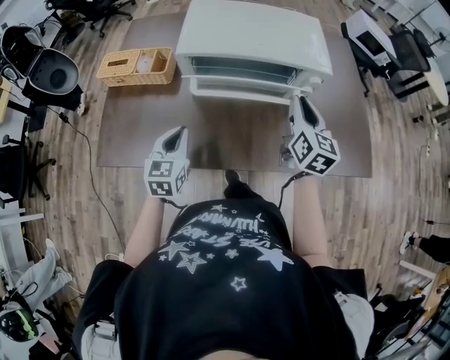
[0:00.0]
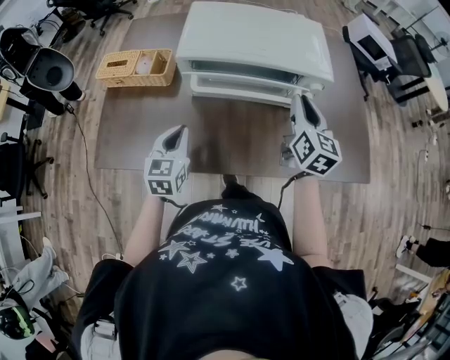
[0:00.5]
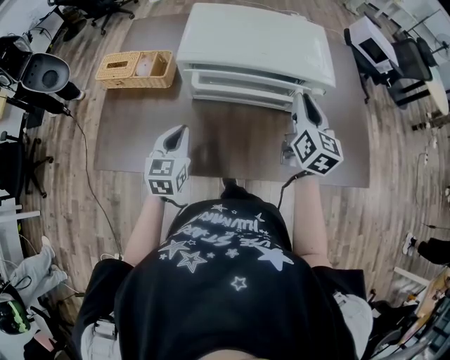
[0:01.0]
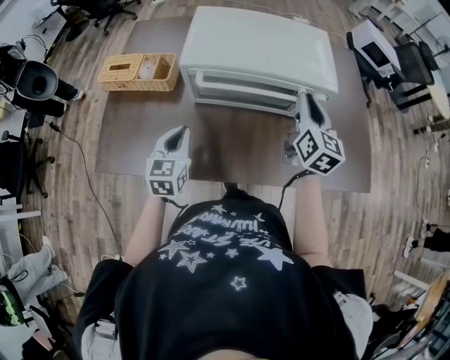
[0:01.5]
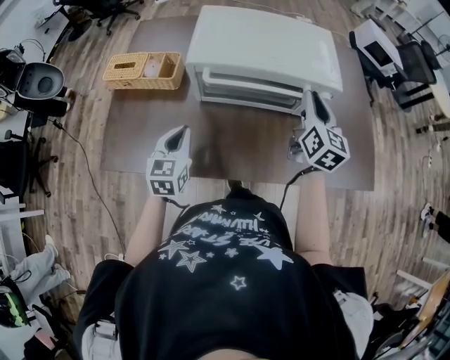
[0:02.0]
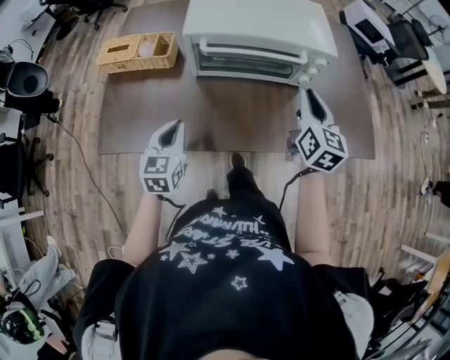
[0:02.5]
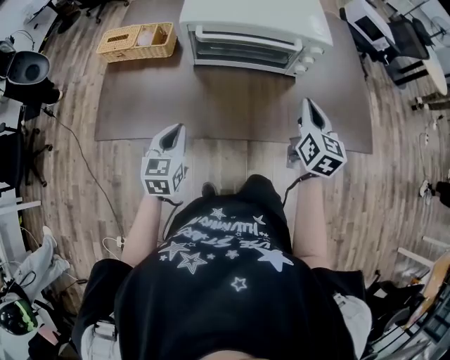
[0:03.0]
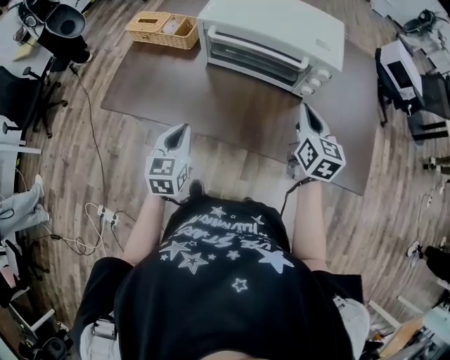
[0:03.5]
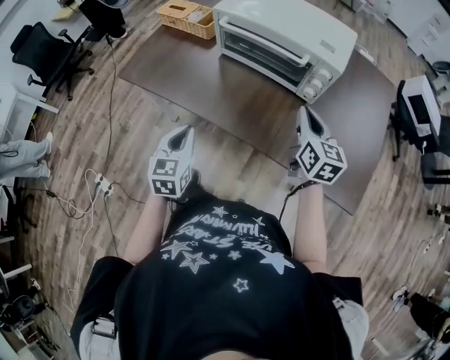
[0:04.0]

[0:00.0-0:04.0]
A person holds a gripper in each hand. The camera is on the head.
0:00.0 to 0:02.0: The right gripper is displaced forward by roughly 5 cm.
0:02.0 to 0:04.0: The right gripper moves approximately 15 cm, and swivels some 30 degrees. Meanwhile the left gripper moves some 25 cm, and swivels some 20 degrees.

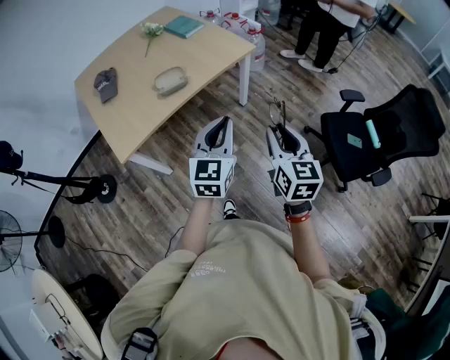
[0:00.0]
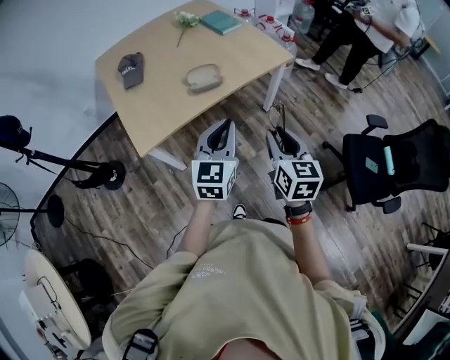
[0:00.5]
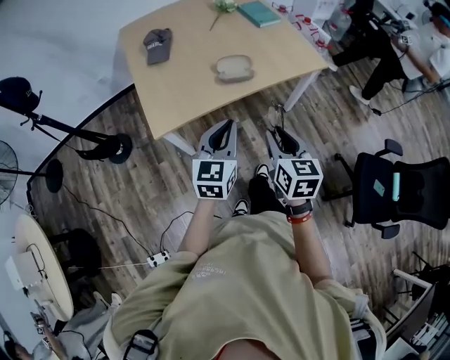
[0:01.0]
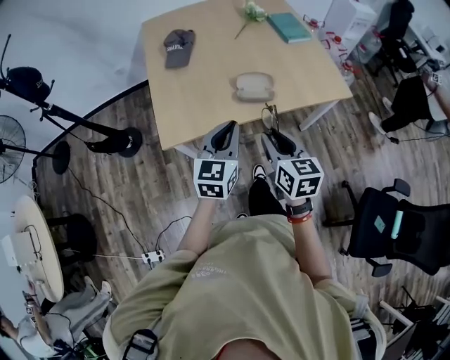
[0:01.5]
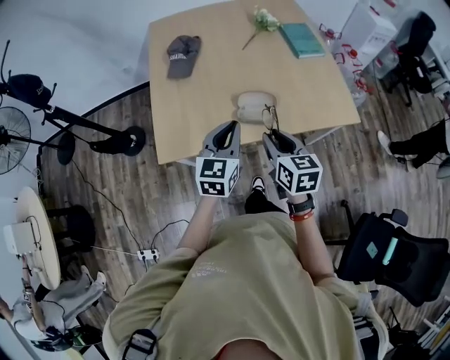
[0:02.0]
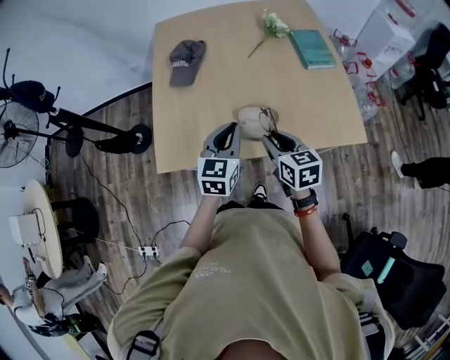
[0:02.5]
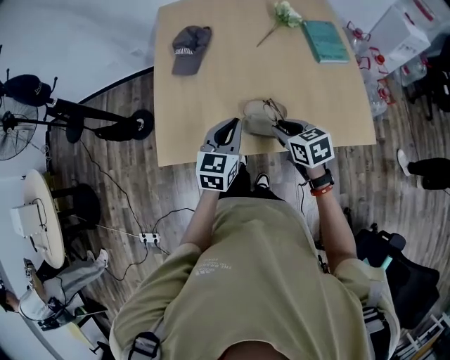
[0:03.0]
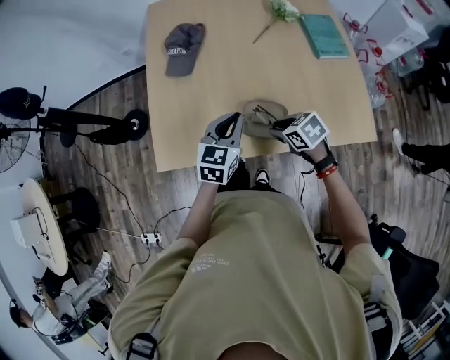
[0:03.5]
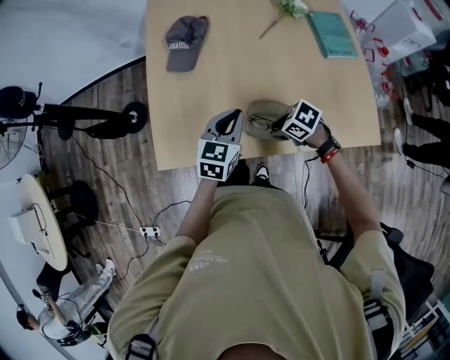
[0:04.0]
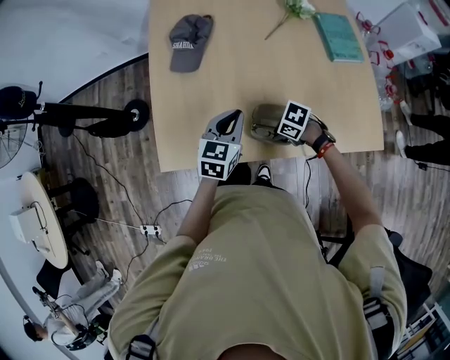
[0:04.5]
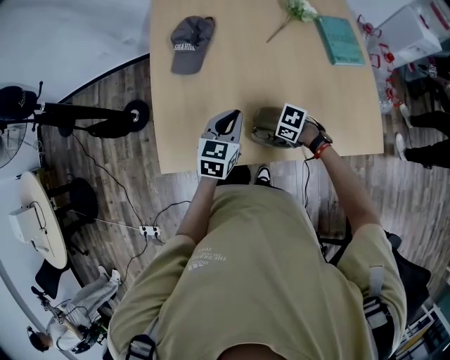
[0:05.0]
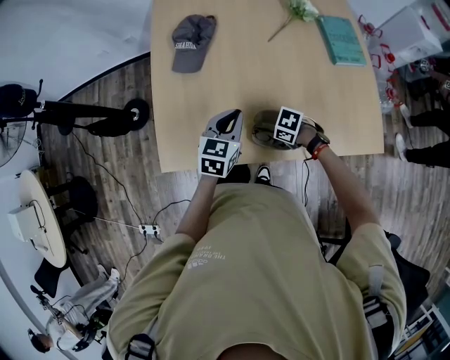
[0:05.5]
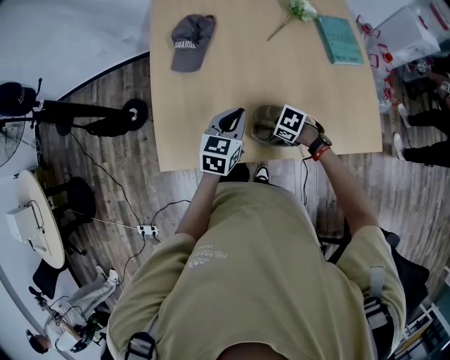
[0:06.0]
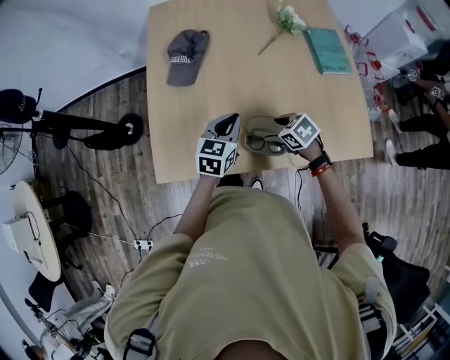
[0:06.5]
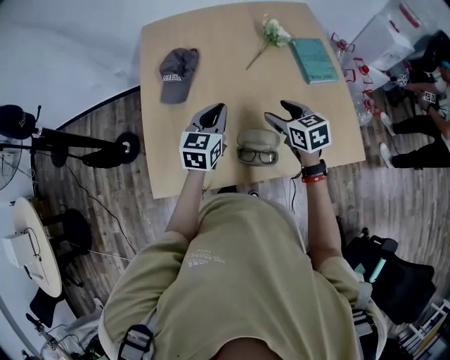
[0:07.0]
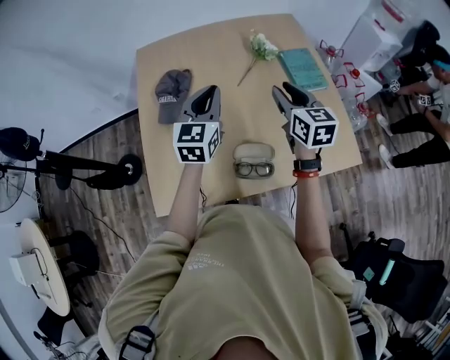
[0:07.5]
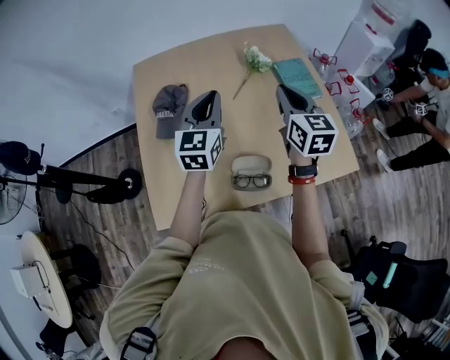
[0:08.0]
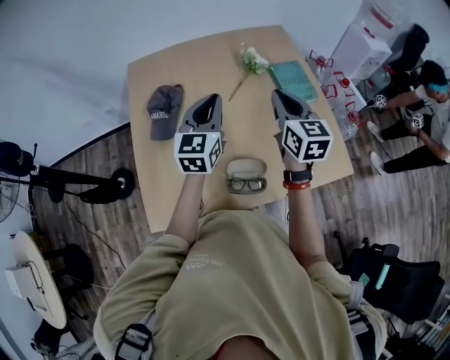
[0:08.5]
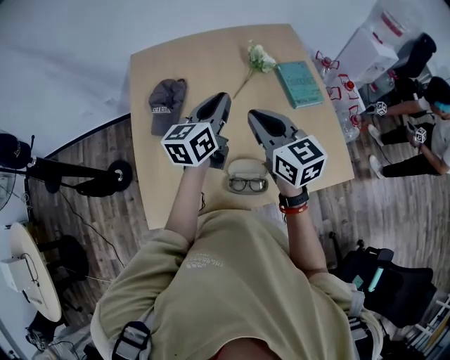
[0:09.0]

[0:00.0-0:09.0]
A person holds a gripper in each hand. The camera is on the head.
0:00.0 to 0:02.0: The pair of grippers is taken roughly 50 cm. The left gripper changes its angle by some 30 degrees; the right gripper rotates some 40 degrees.
0:02.0 to 0:04.5: The right gripper heads downward, covering approximately 25 cm, and points its fingers about 30 degrees further downward. The left gripper moves some 25 cm.
0:04.5 to 0:07.0: The right gripper goes some 20 cm upward, turns by approximately 60 degrees, and opens its fingers; the left gripper is displaced upward by approximately 5 cm.
0:07.0 to 0:09.0: The left gripper heads upward and forward, covering roughly 15 cm, and changes its angle by some 30 degrees; the right gripper goes about 15 cm upward, swivels roughly 20 degrees, and closes.

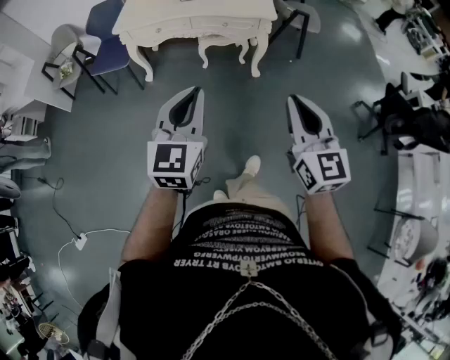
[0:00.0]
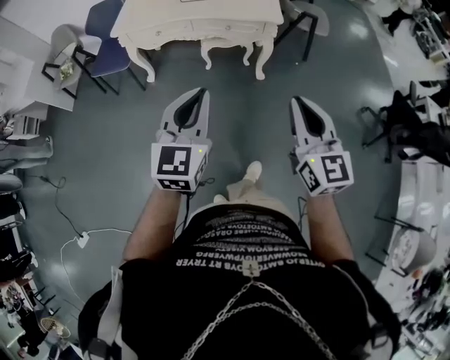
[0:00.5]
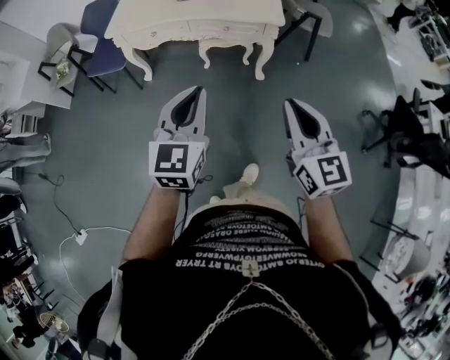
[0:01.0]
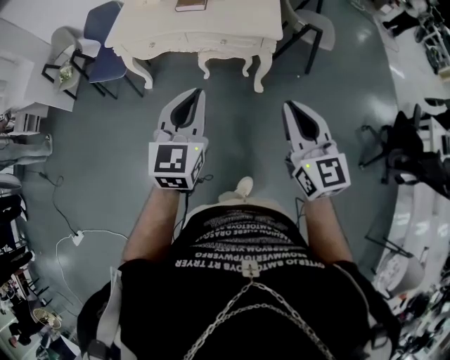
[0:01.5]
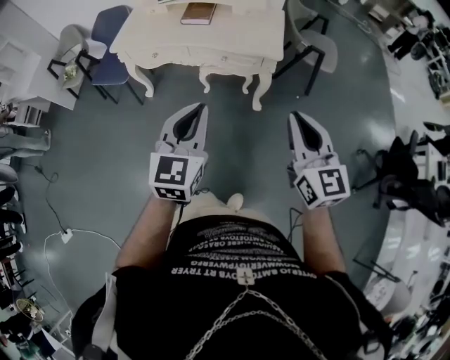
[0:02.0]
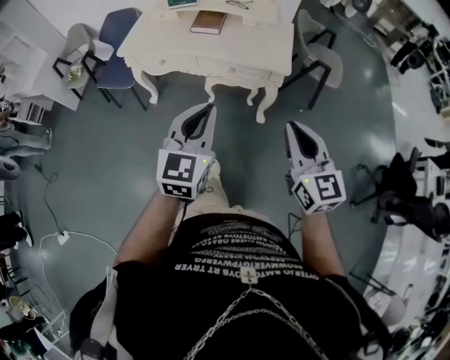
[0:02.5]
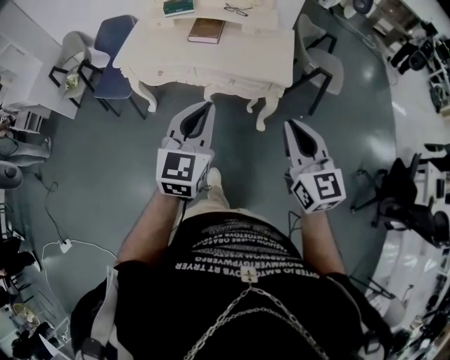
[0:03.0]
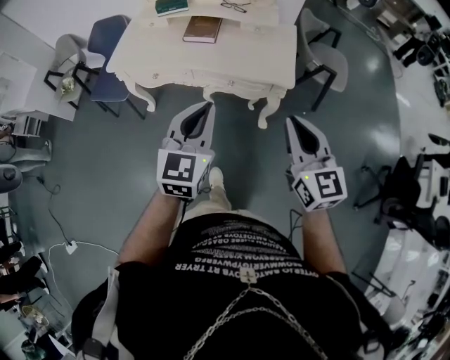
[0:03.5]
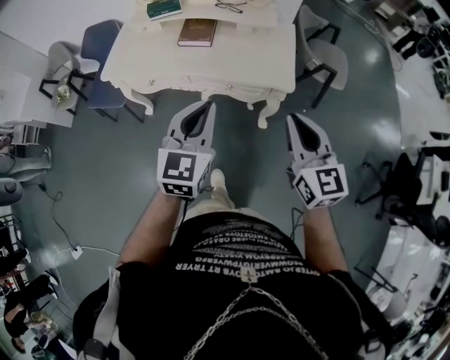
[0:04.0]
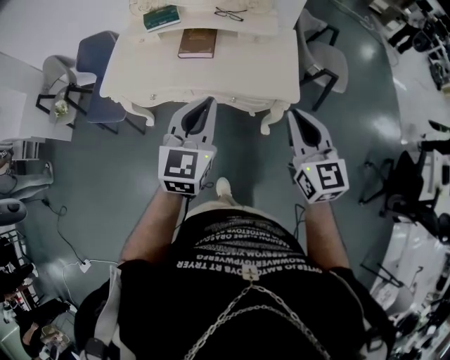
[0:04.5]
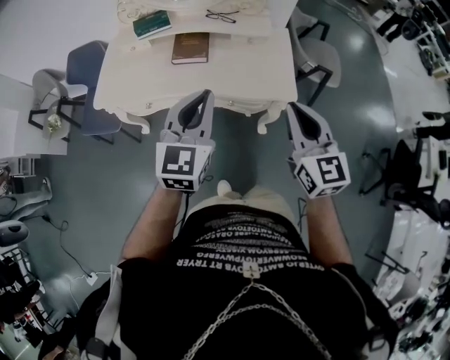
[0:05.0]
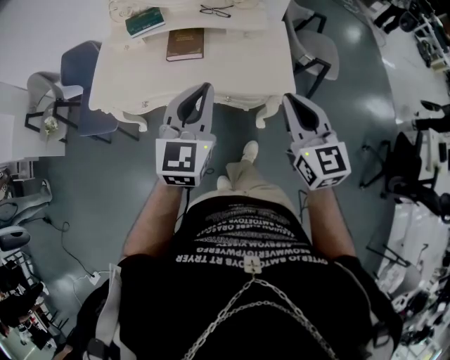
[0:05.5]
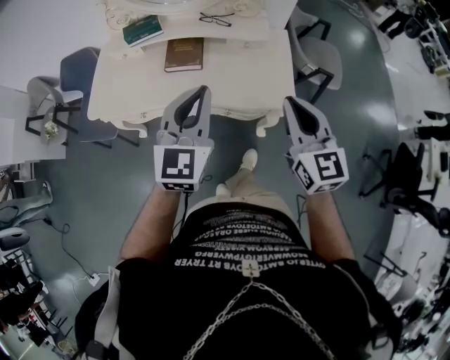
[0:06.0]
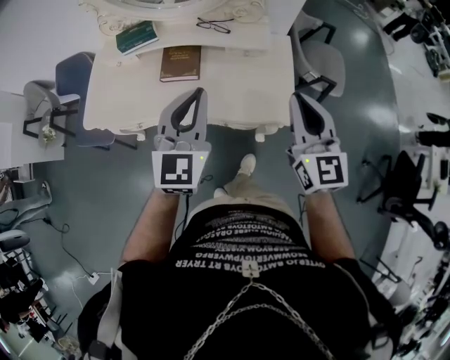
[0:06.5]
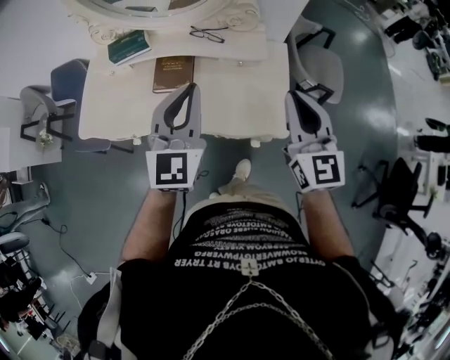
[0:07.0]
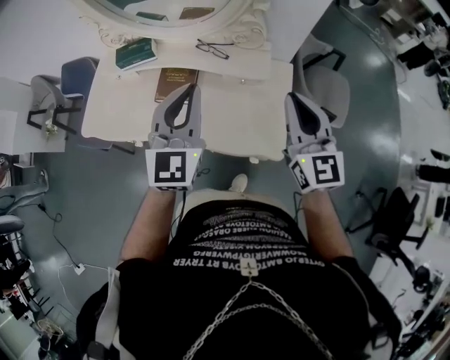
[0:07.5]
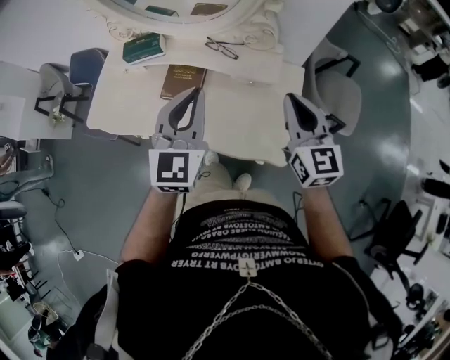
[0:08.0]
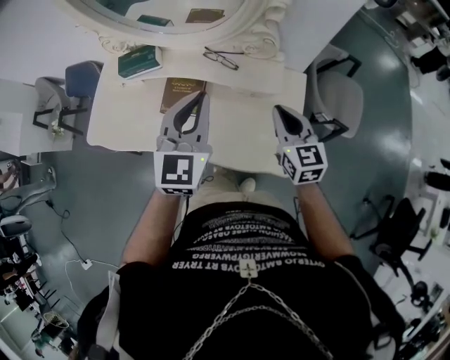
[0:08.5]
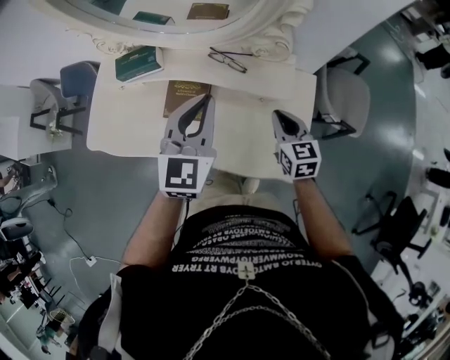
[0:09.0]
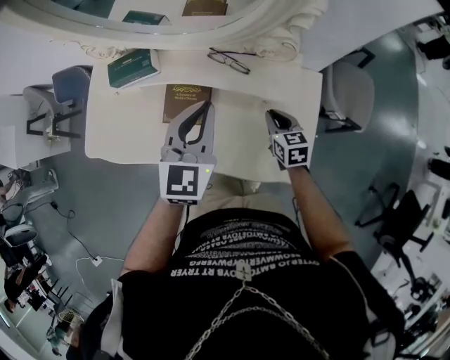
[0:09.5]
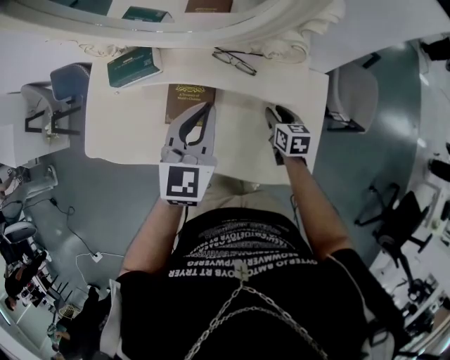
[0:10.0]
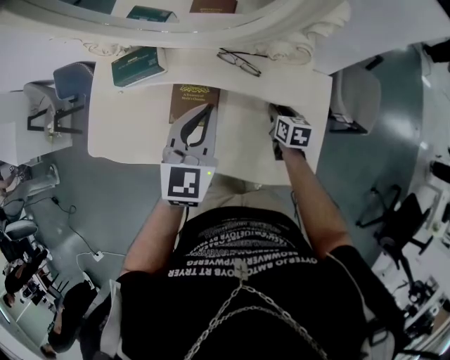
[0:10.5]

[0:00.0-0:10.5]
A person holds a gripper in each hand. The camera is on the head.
0:00.0 to 0:02.0: The grippers both shift forward and to the right by some 25 cm.
0:02.0 to 0:04.0: Both grippers travel together forward, approximately 25 cm.
0:04.0 to 0:06.5: The two grippers go roughly 25 cm forward.
0:06.5 to 0:08.5: The left gripper moves forward, roughly 15 cm. The right gripper travels forward and downward by some 25 cm, and swivels about 20 degrees.
0:08.5 to 0:10.5: The left gripper travels downward and forward by about 10 cm. Meanwhile the right gripper is displaced downward and forward by approximately 25 cm, and turns by roughly 40 degrees.

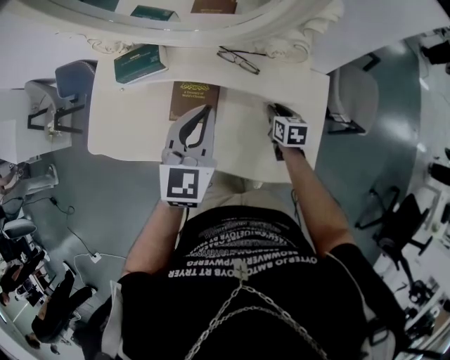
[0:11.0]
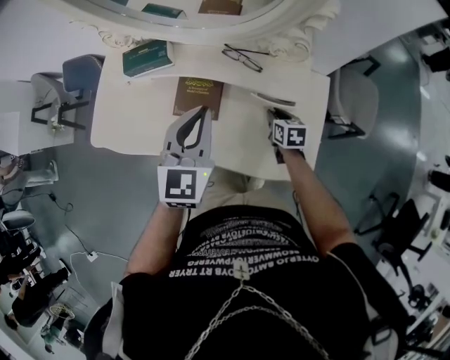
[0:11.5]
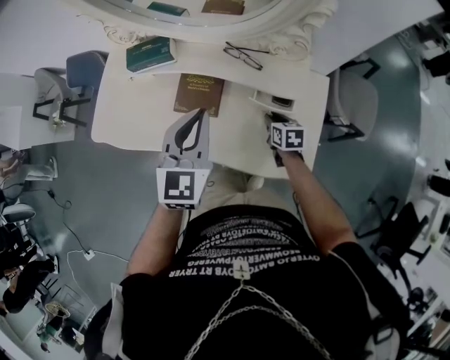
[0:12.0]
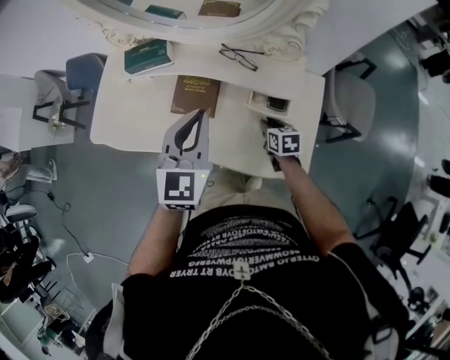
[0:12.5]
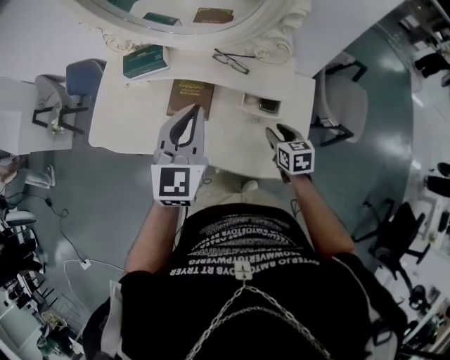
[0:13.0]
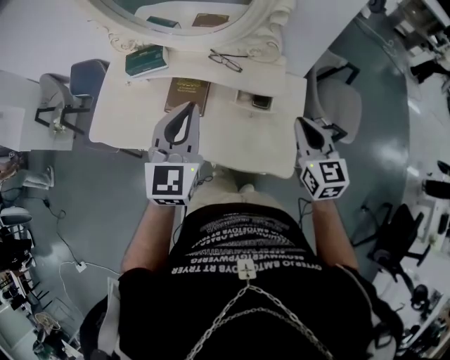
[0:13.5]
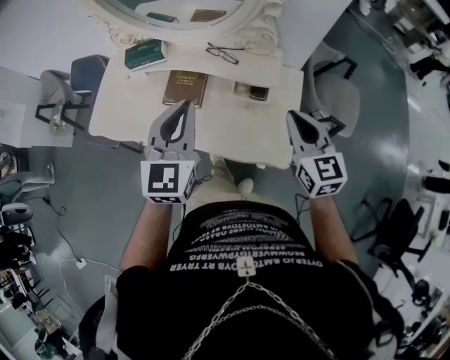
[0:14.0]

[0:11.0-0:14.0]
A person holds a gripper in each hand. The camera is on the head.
0:11.0 to 0:12.5: The grippers both shift backward by approximately 5 cm.
0:12.5 to 0:14.0: The right gripper goes roughly 30 cm upward, and tips its fingers upward by some 40 degrees, while the left gripper is displaced backward and upward by about 10 cm.
